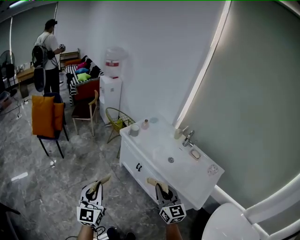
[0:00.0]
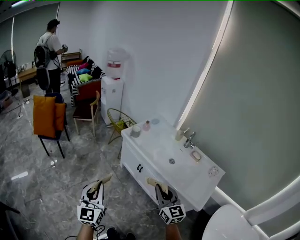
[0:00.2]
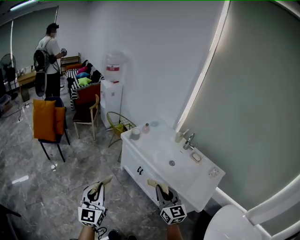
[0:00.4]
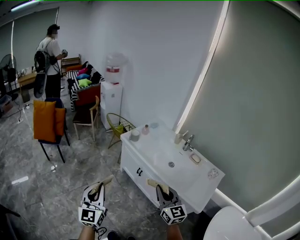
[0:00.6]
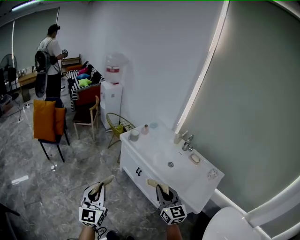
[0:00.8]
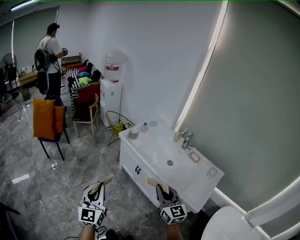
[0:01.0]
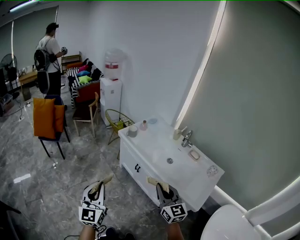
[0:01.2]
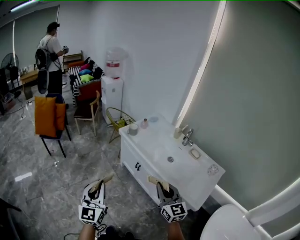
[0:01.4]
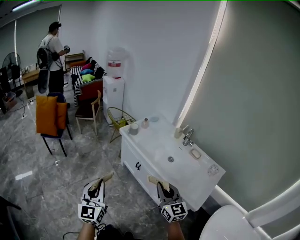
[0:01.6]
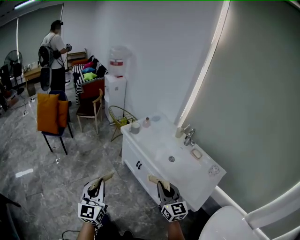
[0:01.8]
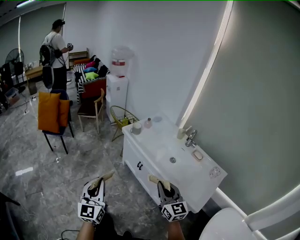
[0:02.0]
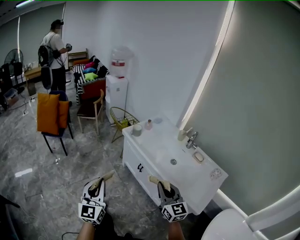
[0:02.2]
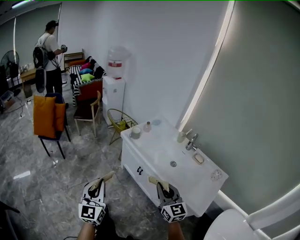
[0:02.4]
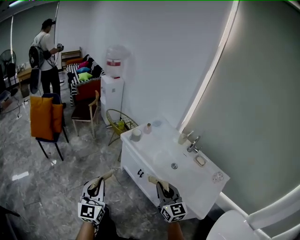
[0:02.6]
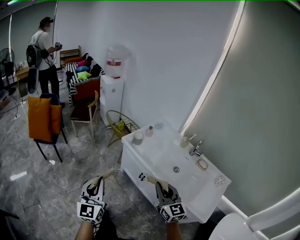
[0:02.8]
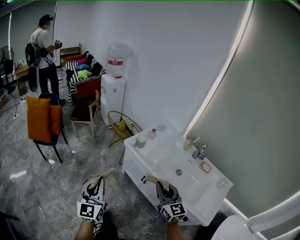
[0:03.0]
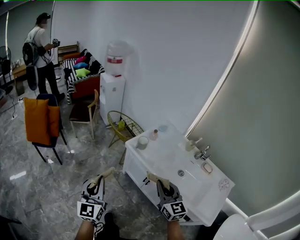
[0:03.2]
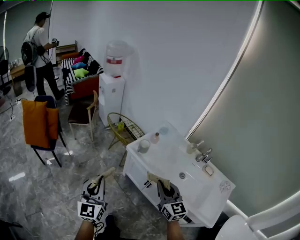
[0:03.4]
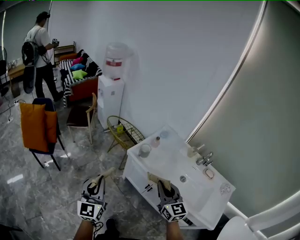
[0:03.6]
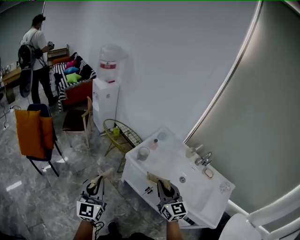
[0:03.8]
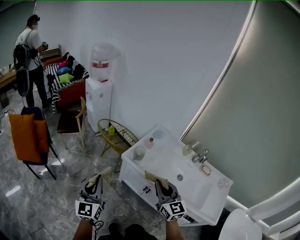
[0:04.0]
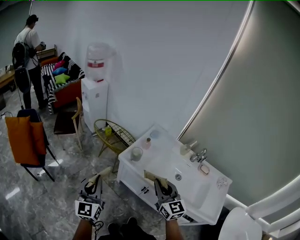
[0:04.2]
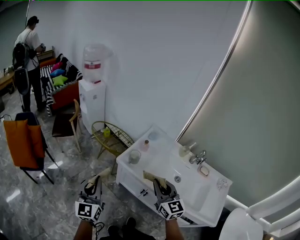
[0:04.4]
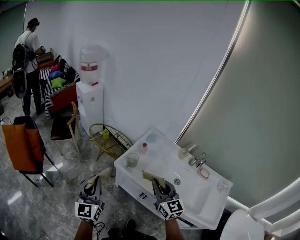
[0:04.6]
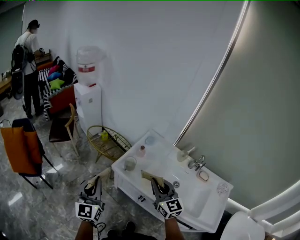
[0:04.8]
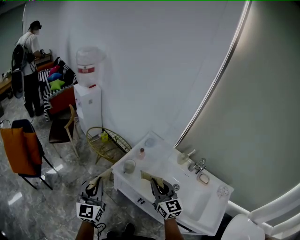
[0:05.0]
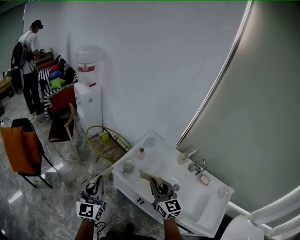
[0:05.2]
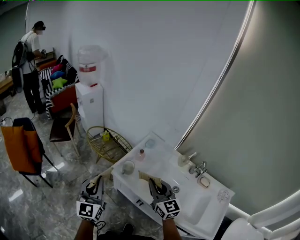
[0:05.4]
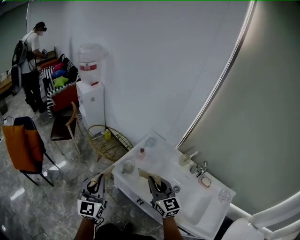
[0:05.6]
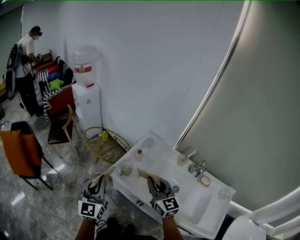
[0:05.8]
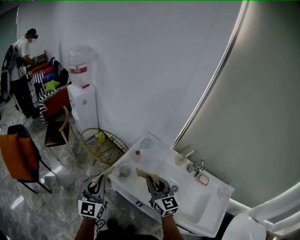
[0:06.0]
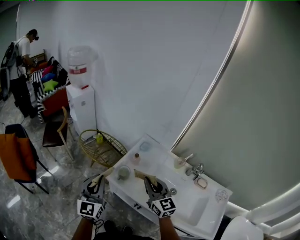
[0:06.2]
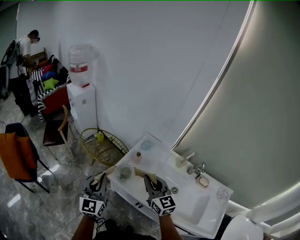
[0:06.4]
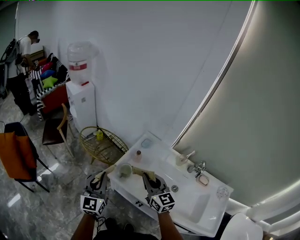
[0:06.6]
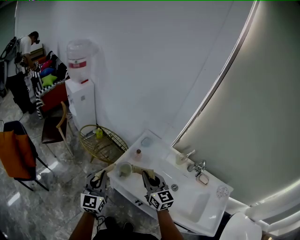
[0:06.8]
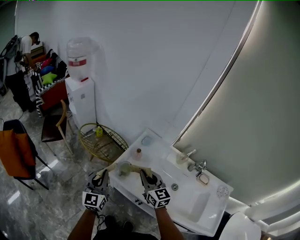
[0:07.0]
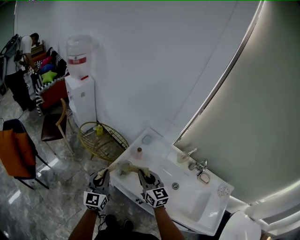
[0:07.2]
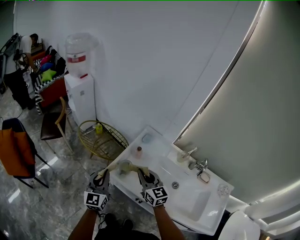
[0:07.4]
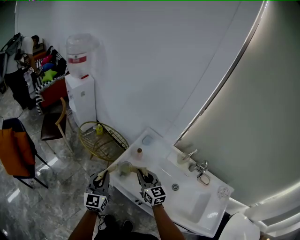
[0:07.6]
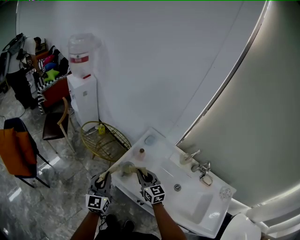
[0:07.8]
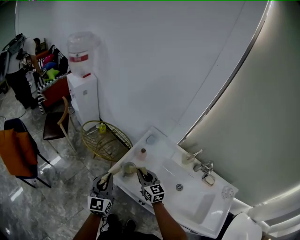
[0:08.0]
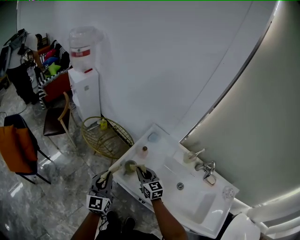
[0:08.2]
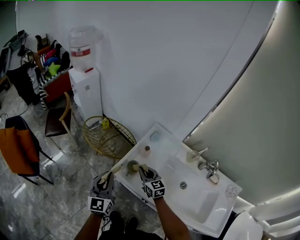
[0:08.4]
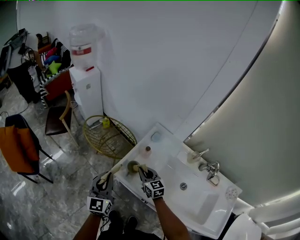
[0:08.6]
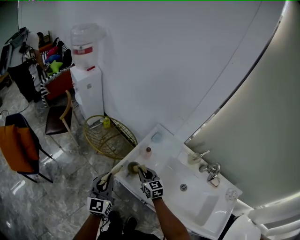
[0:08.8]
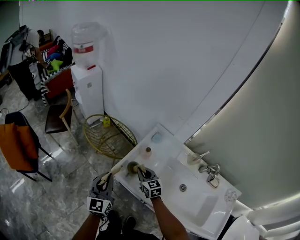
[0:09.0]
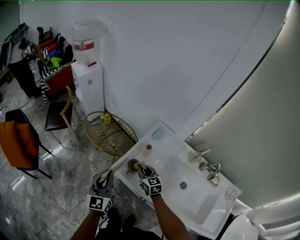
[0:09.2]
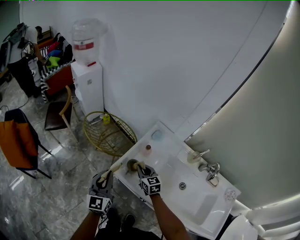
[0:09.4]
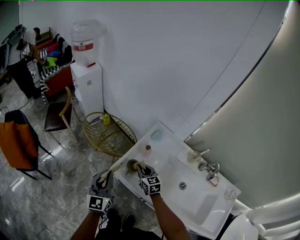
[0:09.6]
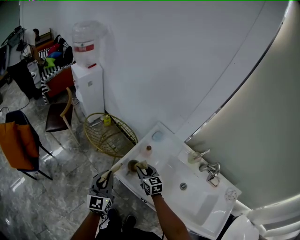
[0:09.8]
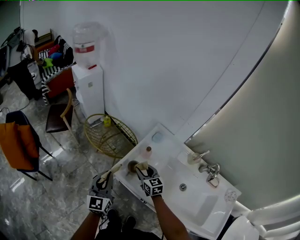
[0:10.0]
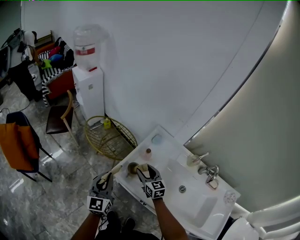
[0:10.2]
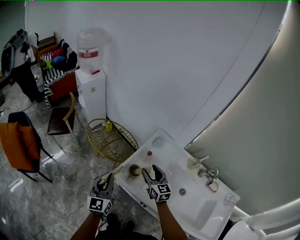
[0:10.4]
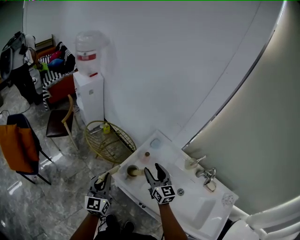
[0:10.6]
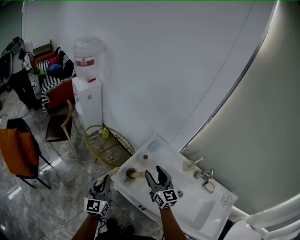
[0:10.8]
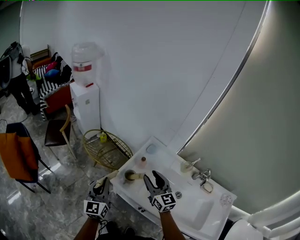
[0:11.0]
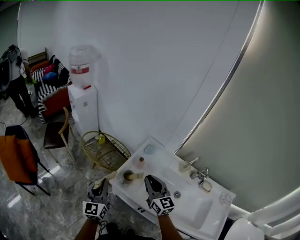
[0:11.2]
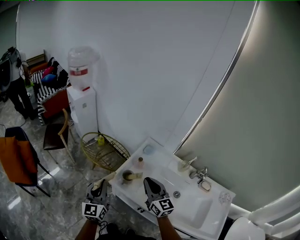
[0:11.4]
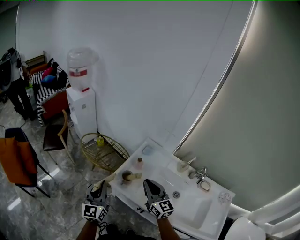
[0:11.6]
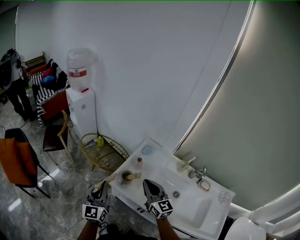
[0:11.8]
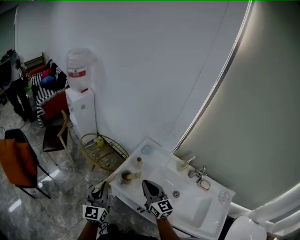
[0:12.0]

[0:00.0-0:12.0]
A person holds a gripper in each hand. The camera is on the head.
0:00.0 to 0:01.6: Both grippers move to the right, about 5 cm.
0:01.6 to 0:03.0: The left gripper shifts approximately 25 cm forward. The right gripper travels forward and to the left by roughly 25 cm.
0:03.0 to 0:04.4: The grippers both shift forward by about 20 cm.
0:04.4 to 0:06.0: Both grippers travel together forward and to the right, about 15 cm.
0:06.0 to 0:07.6: The grippers both shift downward and forward by roughly 15 cm.
0:07.6 to 0:09.0: The right gripper shifts roughly 15 cm downward and forward.
0:09.0 to 0:10.4: The right gripper shifts roughly 10 cm upward, and opens its fingers.
0:10.4 to 0:12.0: The left gripper heads upward and backward, covering some 10 cm. The right gripper is displaced upward and backward by roughly 15 cm, and closes its fingers.

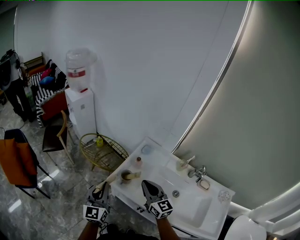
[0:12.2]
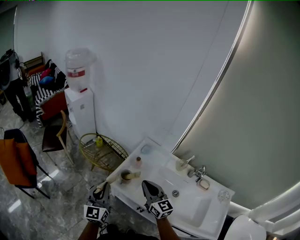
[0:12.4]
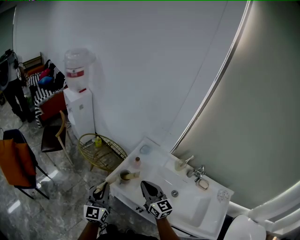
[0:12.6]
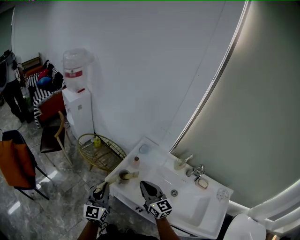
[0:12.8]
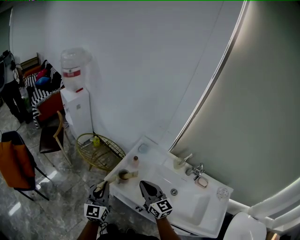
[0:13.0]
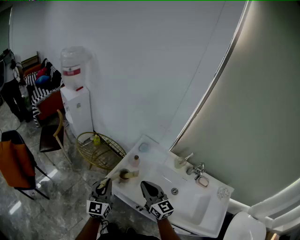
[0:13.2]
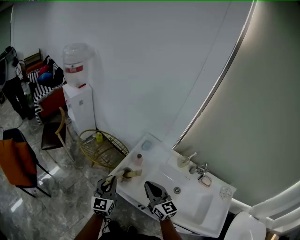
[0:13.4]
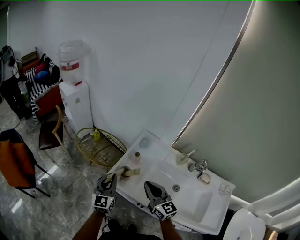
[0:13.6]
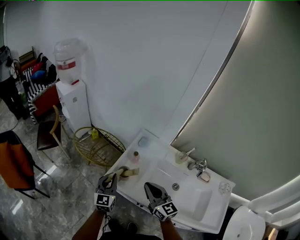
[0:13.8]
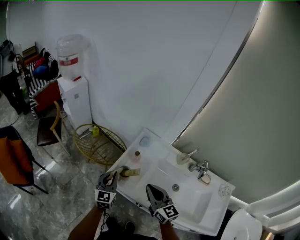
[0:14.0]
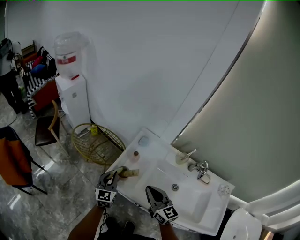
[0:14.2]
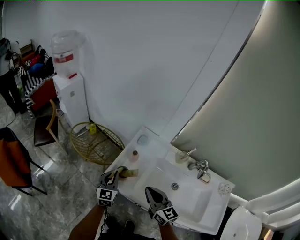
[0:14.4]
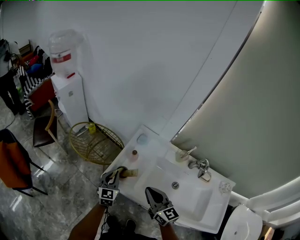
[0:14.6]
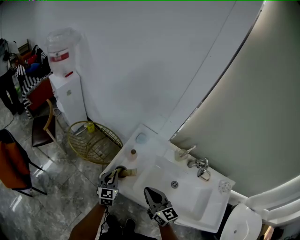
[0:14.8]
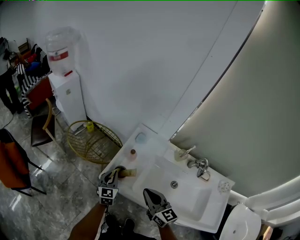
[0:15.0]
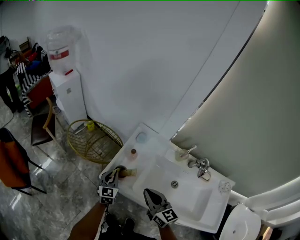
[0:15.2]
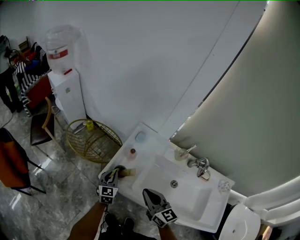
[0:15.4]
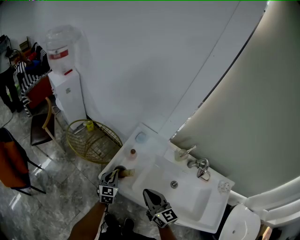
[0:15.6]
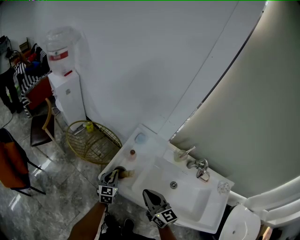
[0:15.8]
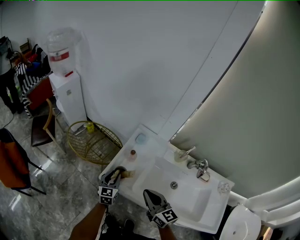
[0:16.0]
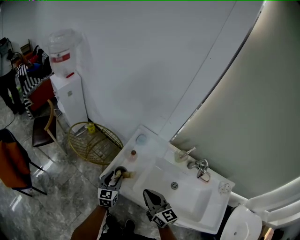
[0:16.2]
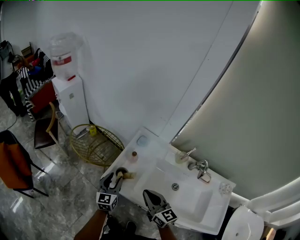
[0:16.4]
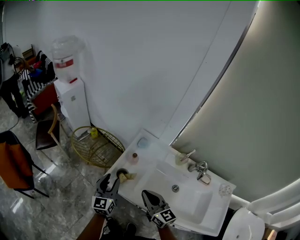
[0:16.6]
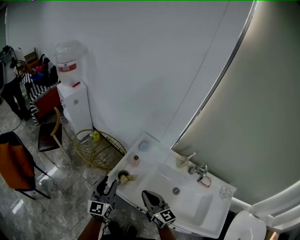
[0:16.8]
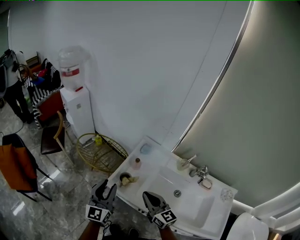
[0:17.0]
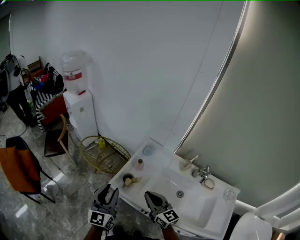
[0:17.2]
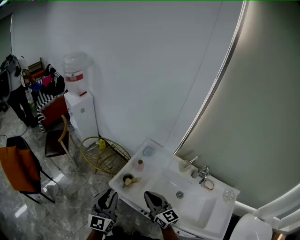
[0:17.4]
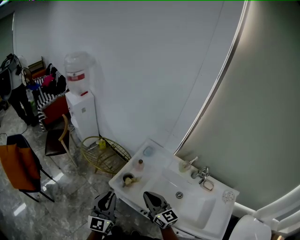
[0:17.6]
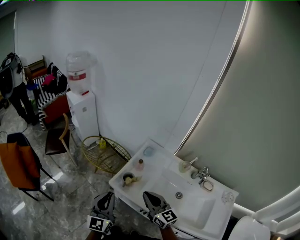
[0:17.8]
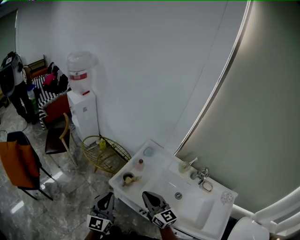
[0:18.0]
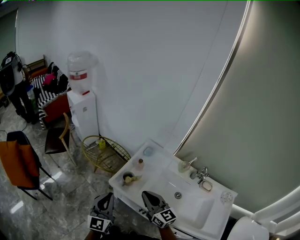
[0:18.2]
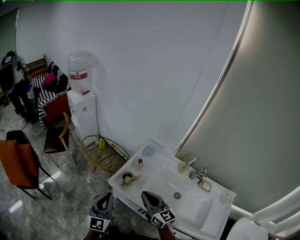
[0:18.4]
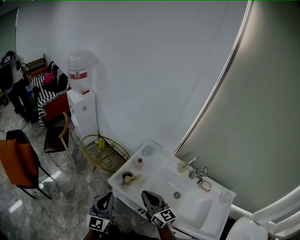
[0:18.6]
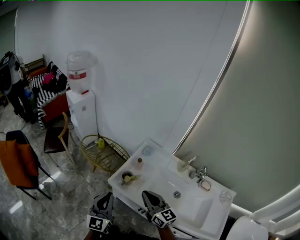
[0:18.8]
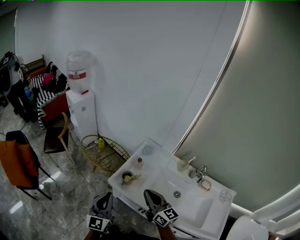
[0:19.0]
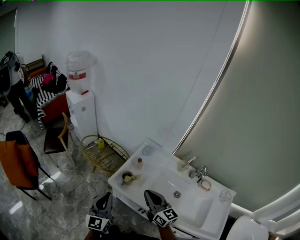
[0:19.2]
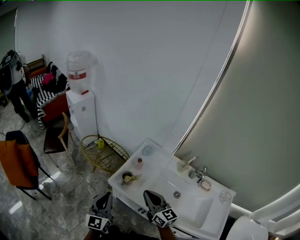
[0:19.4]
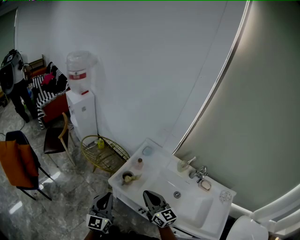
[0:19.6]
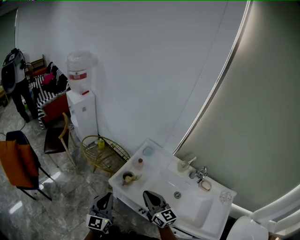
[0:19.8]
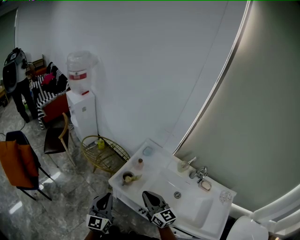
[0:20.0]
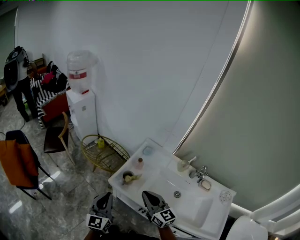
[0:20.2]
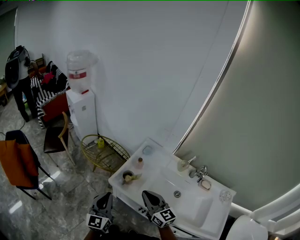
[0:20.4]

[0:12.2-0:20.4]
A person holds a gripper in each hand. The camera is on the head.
0:12.2 to 0:13.8: The left gripper goes some 15 cm downward, forward and to the right.
0:13.8 to 0:15.4: The left gripper heads downward and forward, covering approximately 15 cm.
0:15.4 to 0:17.2: The left gripper travels upward and backward by about 25 cm, swivels approximately 30 degrees, and opens. The right gripper shifts by about 5 cm.
0:17.2 to 0:18.8: The left gripper moves backward, roughly 5 cm, and closes its fingers.
0:18.8 to 0:20.4: There are only small adjustments of the grippers.

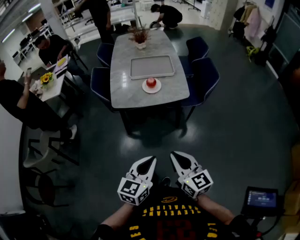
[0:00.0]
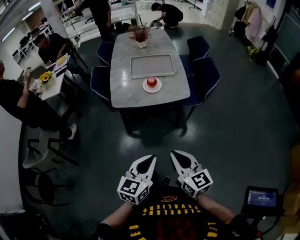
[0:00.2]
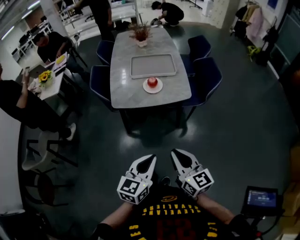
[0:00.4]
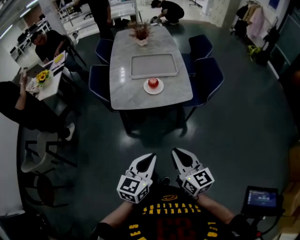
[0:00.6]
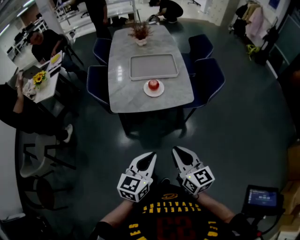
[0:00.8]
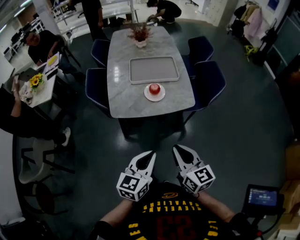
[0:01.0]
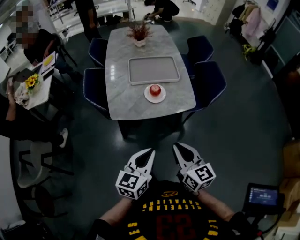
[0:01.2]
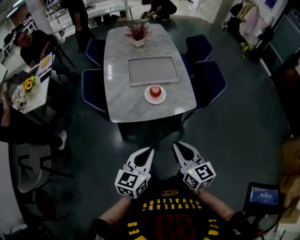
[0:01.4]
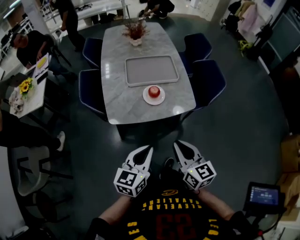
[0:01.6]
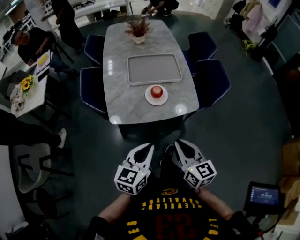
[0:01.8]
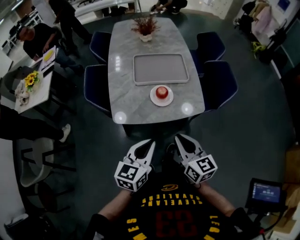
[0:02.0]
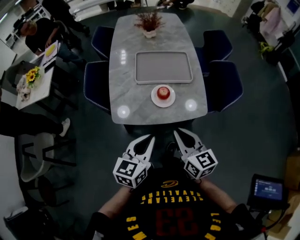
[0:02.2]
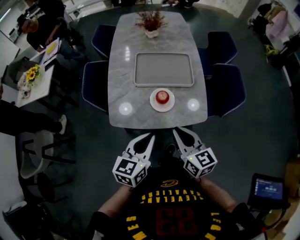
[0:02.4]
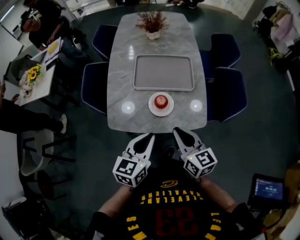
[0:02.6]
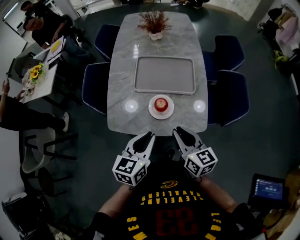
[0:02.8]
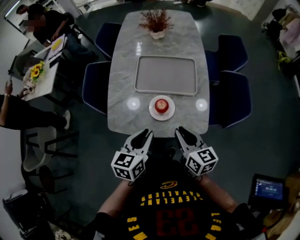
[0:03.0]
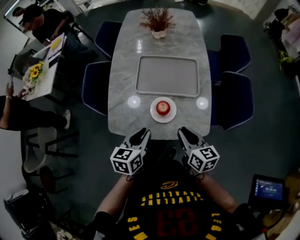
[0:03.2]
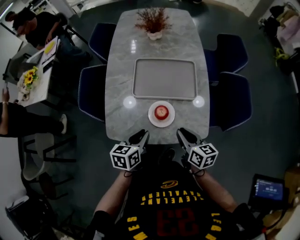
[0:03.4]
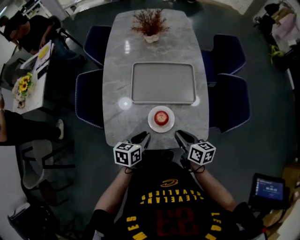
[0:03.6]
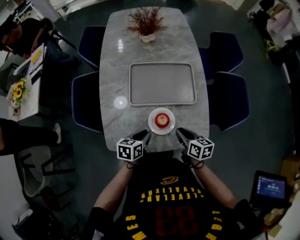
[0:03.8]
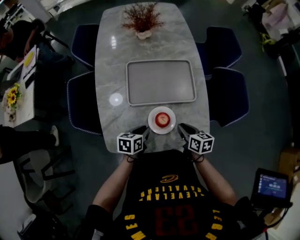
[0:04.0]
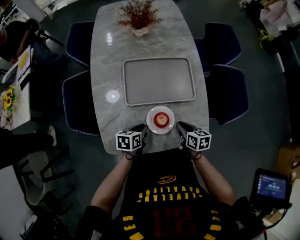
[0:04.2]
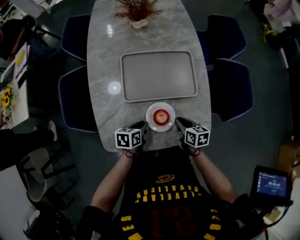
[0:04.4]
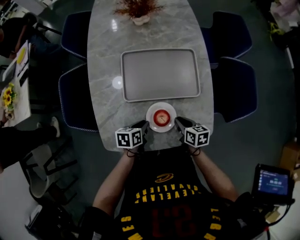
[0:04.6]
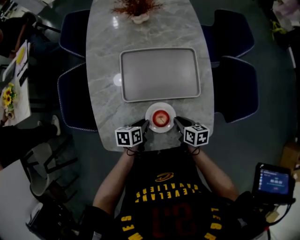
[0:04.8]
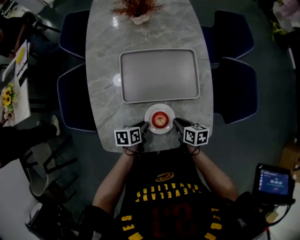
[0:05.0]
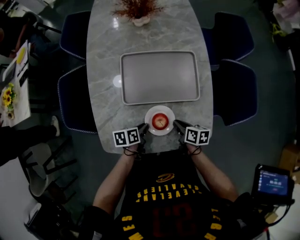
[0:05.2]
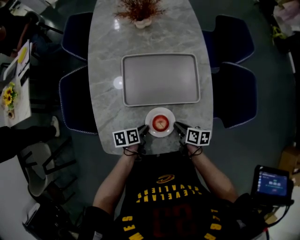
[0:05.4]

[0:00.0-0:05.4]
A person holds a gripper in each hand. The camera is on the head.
0:00.0 to 0:01.4: The right gripper moves forward, approximately 20 cm, while the left gripper travels forward and to the left by some 20 cm.
0:01.4 to 0:02.8: Both grippers travel together forward, some 20 cm.
0:02.8 to 0:04.0: The two grippers go roughly 25 cm downward and forward. The left gripper swivels approximately 30 degrees; the right gripper rotates about 30 degrees.
0:04.0 to 0:05.4: The two grippers go approximately 5 cm downward. The left gripper swivels approximately 30 degrees, while the right gripper swivels some 20 degrees.
